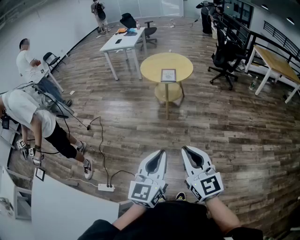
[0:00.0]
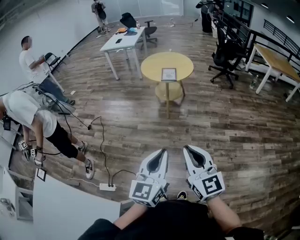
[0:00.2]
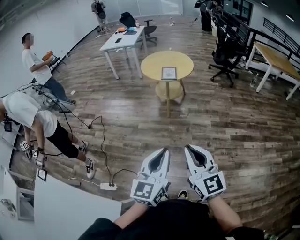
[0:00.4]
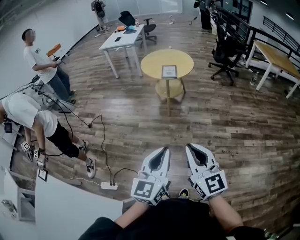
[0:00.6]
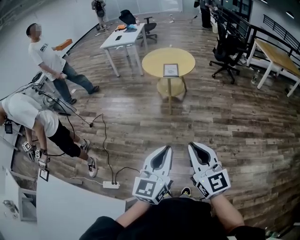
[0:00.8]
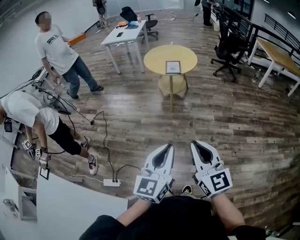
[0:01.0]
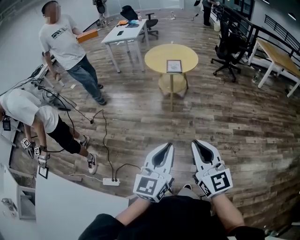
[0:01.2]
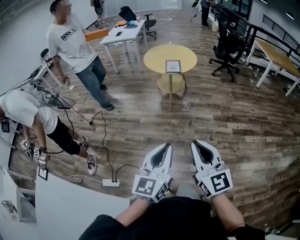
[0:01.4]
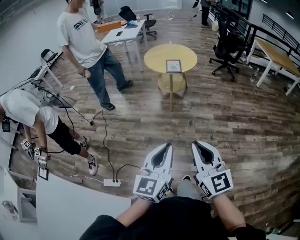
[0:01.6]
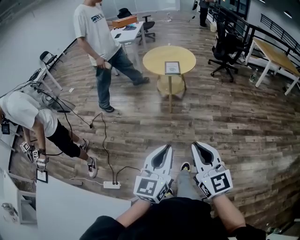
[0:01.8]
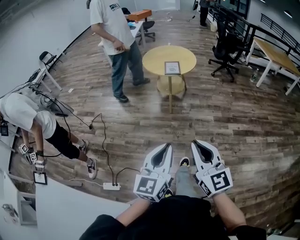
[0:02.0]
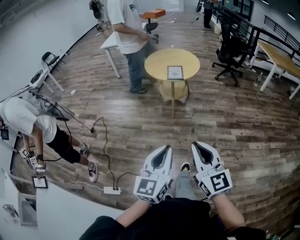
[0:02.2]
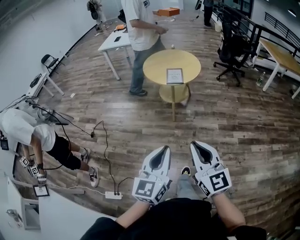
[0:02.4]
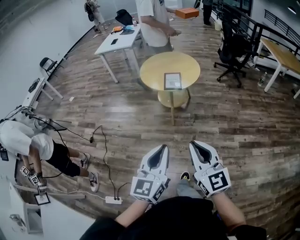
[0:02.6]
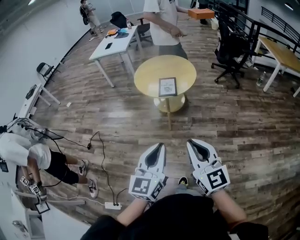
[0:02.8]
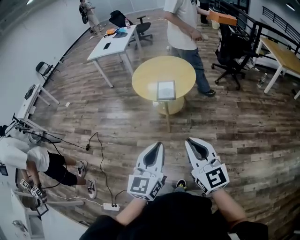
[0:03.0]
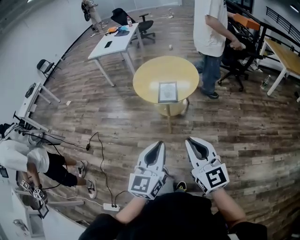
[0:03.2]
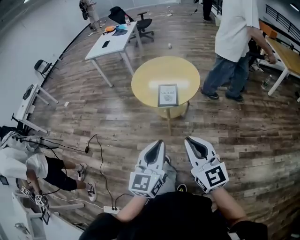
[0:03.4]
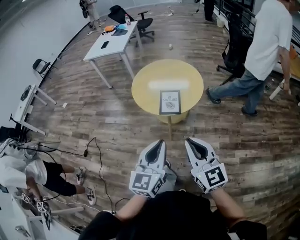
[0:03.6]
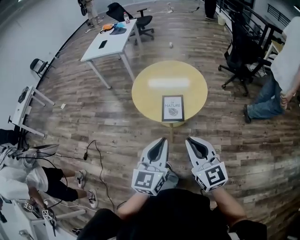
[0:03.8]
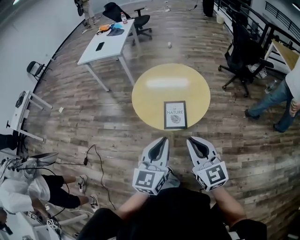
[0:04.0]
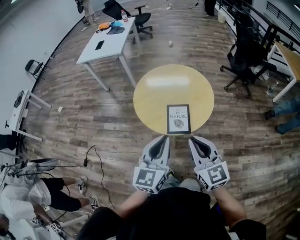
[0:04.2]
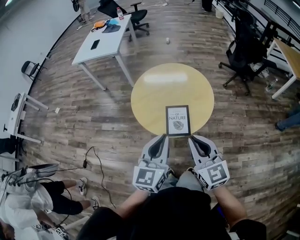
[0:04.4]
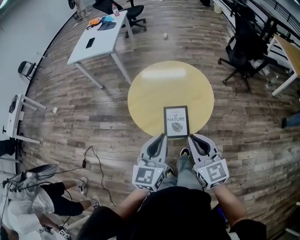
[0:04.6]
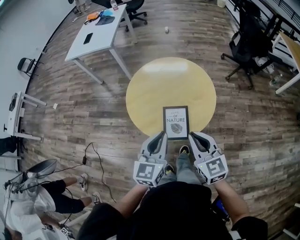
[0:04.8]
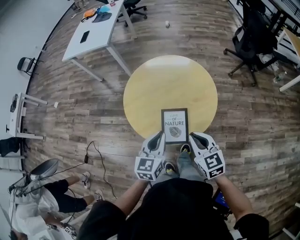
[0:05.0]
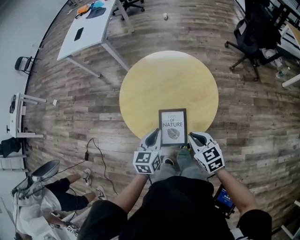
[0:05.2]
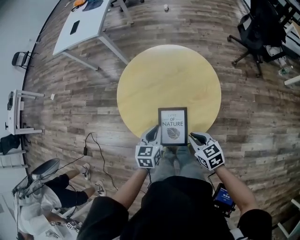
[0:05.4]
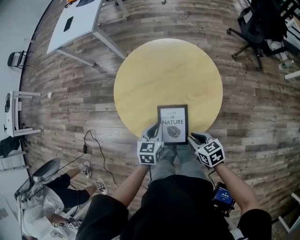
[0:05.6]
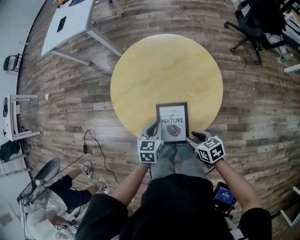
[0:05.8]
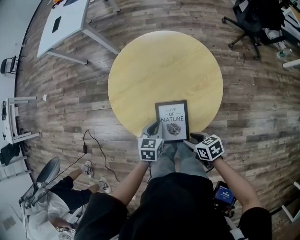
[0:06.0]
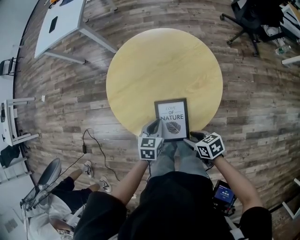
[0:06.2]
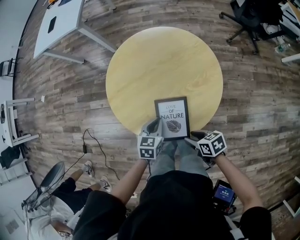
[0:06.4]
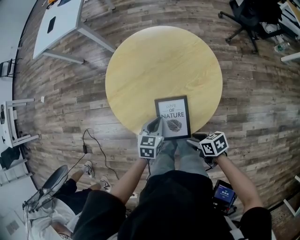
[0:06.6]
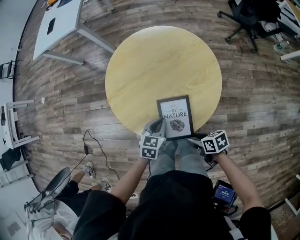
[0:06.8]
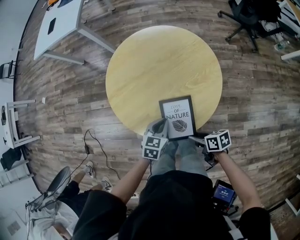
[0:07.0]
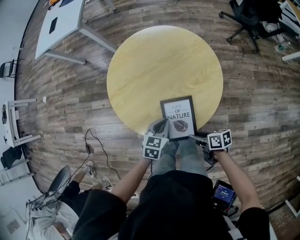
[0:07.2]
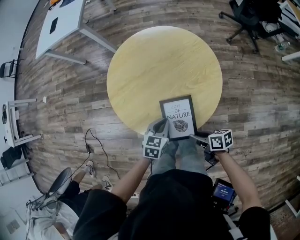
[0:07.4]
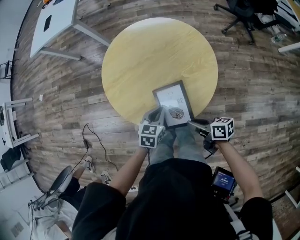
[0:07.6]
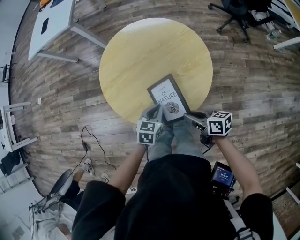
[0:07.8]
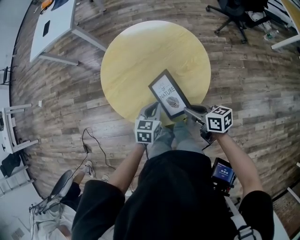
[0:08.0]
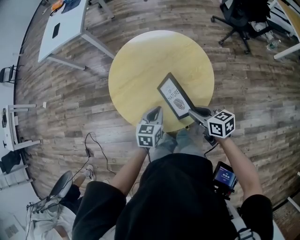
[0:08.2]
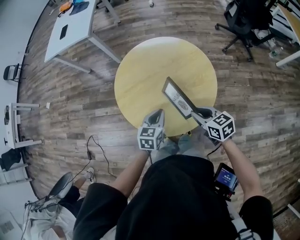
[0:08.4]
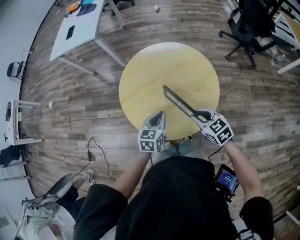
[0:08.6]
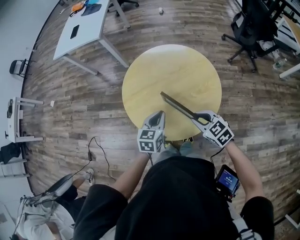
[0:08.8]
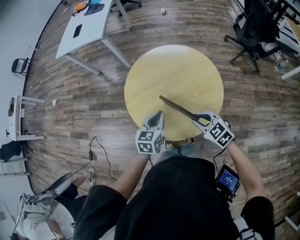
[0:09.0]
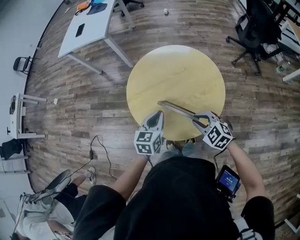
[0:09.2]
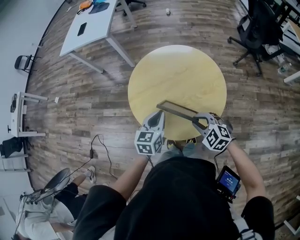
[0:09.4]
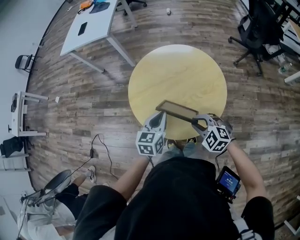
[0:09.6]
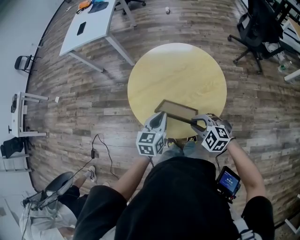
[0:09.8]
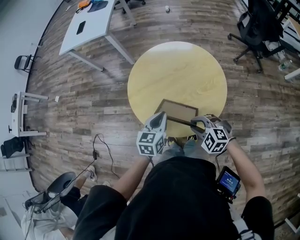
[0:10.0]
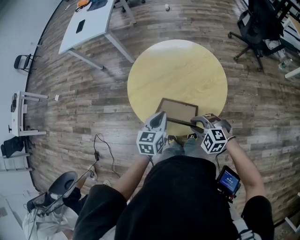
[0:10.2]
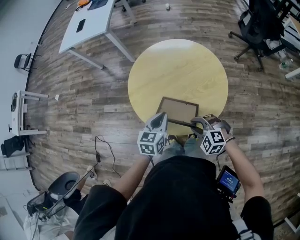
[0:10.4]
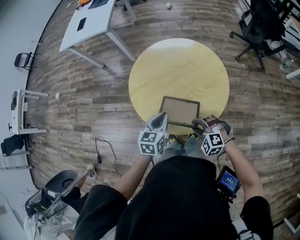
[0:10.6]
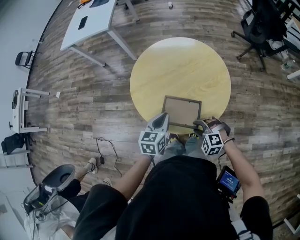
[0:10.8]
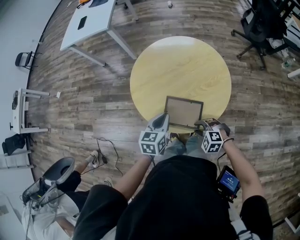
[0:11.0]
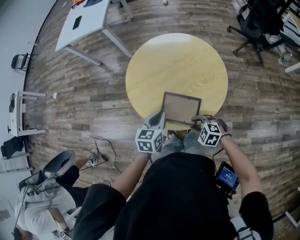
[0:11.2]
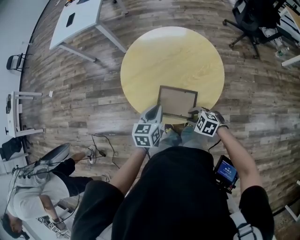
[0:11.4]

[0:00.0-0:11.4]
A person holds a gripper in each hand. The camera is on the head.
0:00.0 to 0:01.4: The grippers move only a little.
0:01.4 to 0:02.8: The two grippers go about 30 cm forward.
0:02.8 to 0:04.2: The pair of grippers is taken forward, roughly 40 cm.
0:04.2 to 0:05.6: Both grippers travel together downward and forward, about 35 cm. The right gripper tips its fingers downward by roughly 40 degrees. The left gripper points its fingers approximately 30 degrees further downward.
0:05.6 to 0:07.2: The left gripper ends up some 5 cm from where it was. Meanwhile the right gripper moves downward, about 5 cm, changes its angle by about 40 degrees, and opens up.
0:07.2 to 0:08.6: The left gripper moves upward, about 10 cm, while the right gripper is displaced upward and forward by roughly 20 cm, rotates around the line of its fingers by roughly 60 degrees, counterclockwise from behind, and closes.
0:08.6 to 0:10.0: The right gripper moves to the left, about 5 cm, and rolls counterclockwise, seen from behind, by some 40 degrees, while the left gripper shifts by some 5 cm.
0:10.0 to 0:11.4: The right gripper travels downward by some 10 cm, and rotates some 20 degrees.

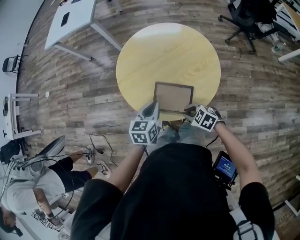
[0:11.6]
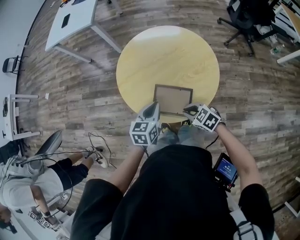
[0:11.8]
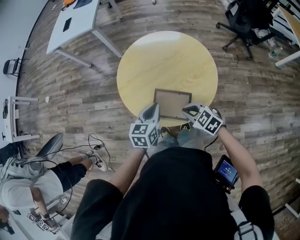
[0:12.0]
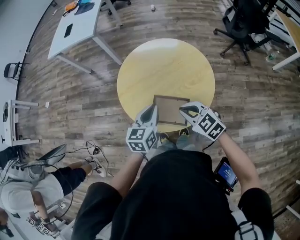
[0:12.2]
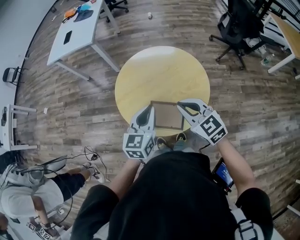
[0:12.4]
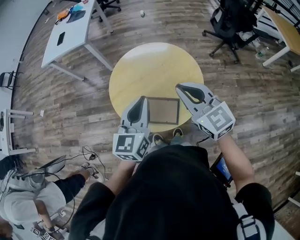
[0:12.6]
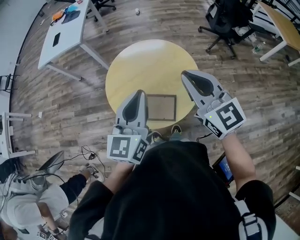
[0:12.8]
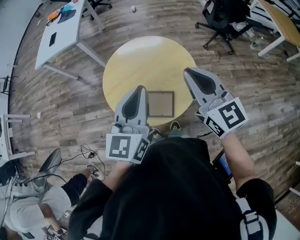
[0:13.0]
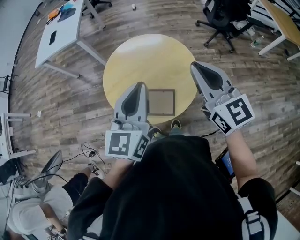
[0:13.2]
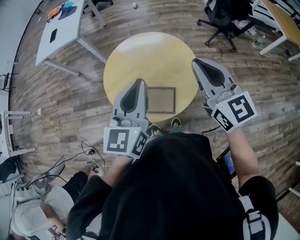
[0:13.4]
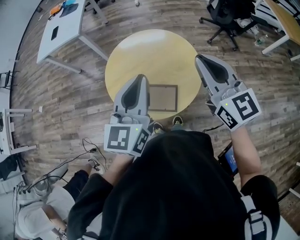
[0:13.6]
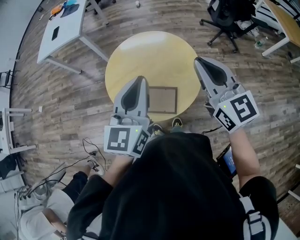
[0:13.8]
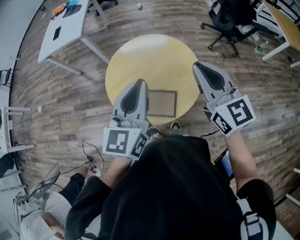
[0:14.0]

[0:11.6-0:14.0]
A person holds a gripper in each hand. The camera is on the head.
0:11.6 to 0:12.8: Both grippers travel together upward, some 35 cm. The right gripper points its fingers about 50 degrees further upward. Meanwhile the left gripper tips its fingers upward by roughly 30 degrees.
0:12.8 to 0:14.0: The grippers stay close to where they were, moving slightly.

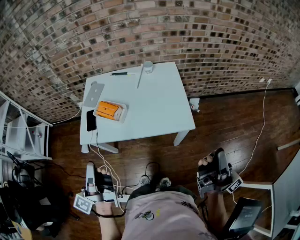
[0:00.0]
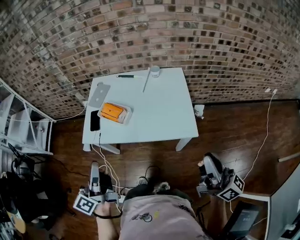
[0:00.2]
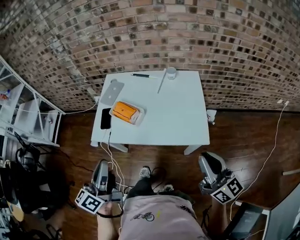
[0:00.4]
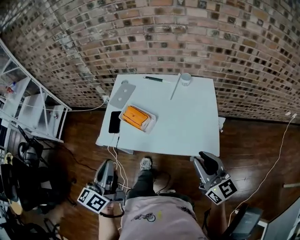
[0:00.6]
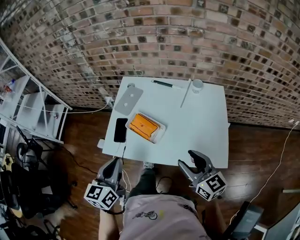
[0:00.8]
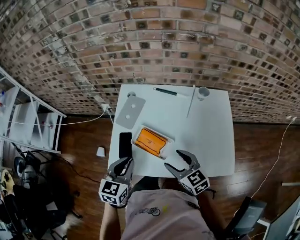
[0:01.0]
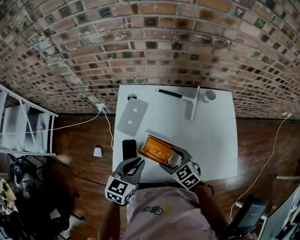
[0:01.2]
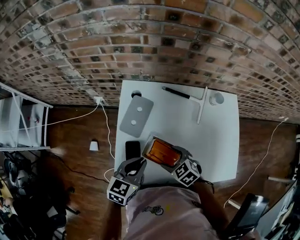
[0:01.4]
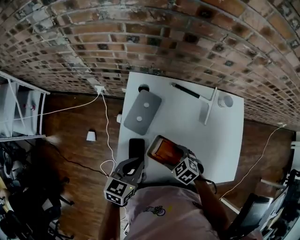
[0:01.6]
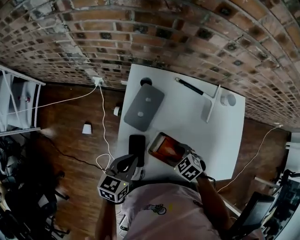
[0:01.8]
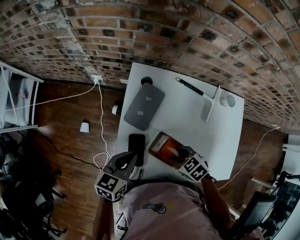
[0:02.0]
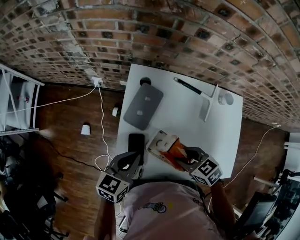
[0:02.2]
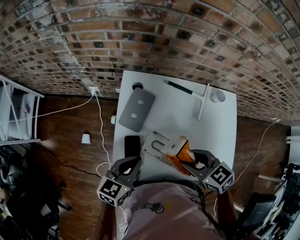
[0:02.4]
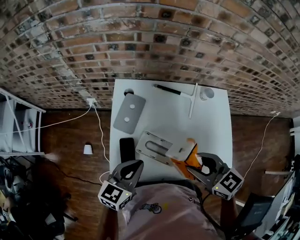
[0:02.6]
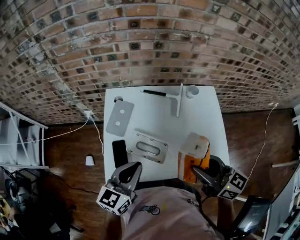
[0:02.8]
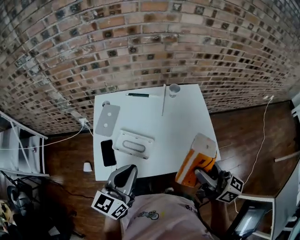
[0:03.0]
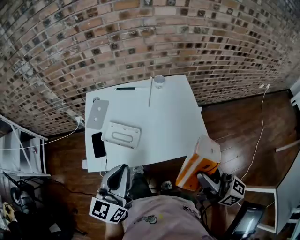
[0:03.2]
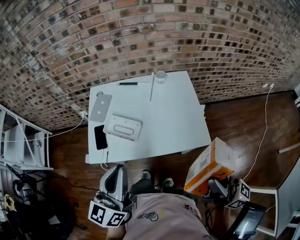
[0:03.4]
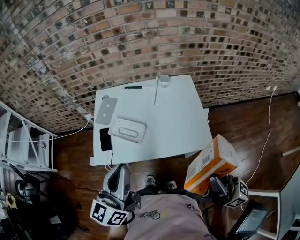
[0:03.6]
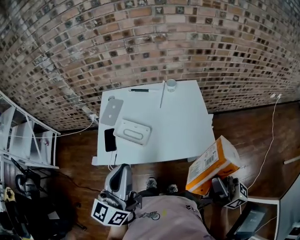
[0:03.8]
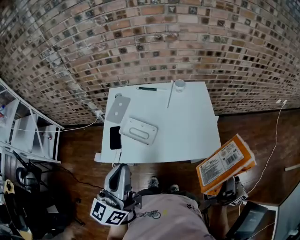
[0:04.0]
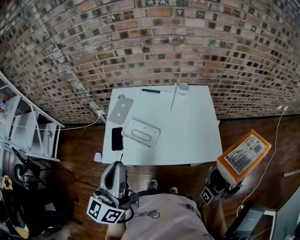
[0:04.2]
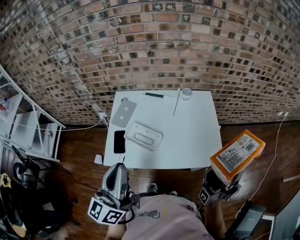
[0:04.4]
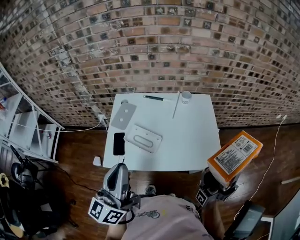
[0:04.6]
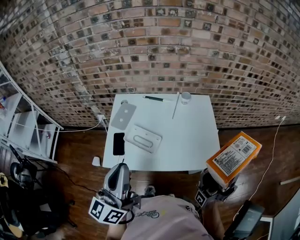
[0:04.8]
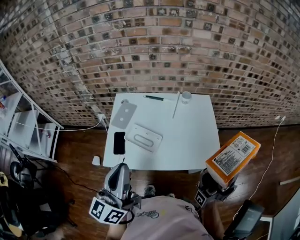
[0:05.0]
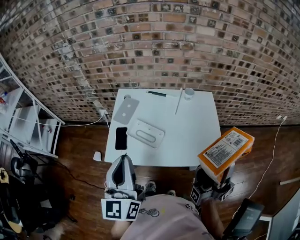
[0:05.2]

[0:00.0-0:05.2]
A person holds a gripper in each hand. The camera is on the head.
0:00.0 to 0:01.8: The right gripper travels forward, to the left and downward by some 70 cm, tilts its fingers roughly 110 degrees downward, and opens. The left gripper heads forward and downward, covering about 40 cm, and points its fingers some 50 degrees further downward.
0:01.8 to 0:03.4: Both grippers travel together upward, backward and to the right, some 50 cm. The right gripper tips its fingers upward by about 90 degrees. The left gripper tips its fingers upward by some 40 degrees.
0:03.4 to 0:05.2: The left gripper changes place by approximately 10 cm, and changes its angle by approximately 20 degrees. The right gripper shifts by roughly 10 cm, and swivels roughly 60 degrees.

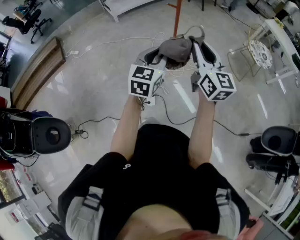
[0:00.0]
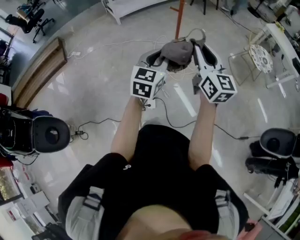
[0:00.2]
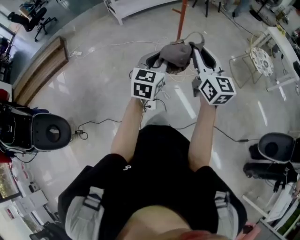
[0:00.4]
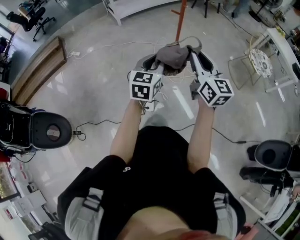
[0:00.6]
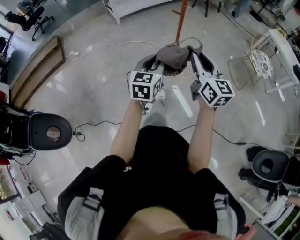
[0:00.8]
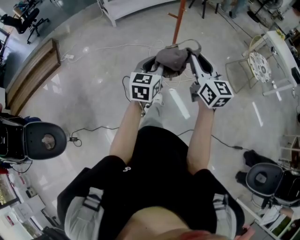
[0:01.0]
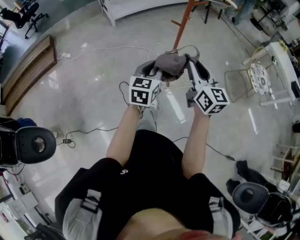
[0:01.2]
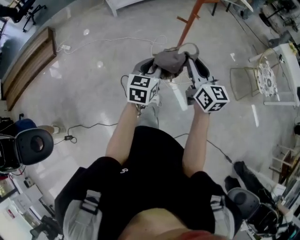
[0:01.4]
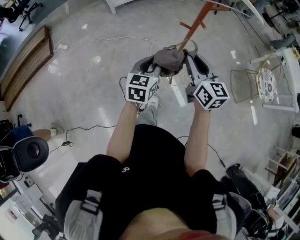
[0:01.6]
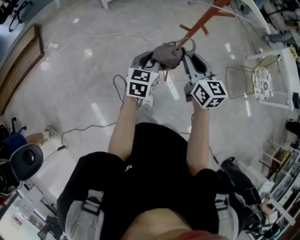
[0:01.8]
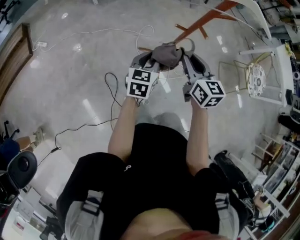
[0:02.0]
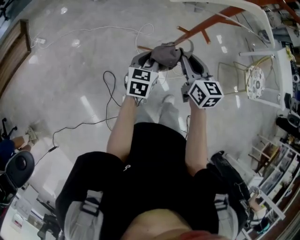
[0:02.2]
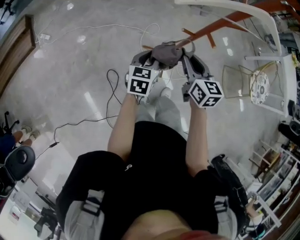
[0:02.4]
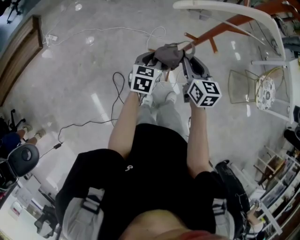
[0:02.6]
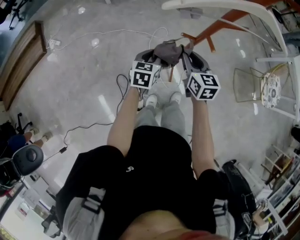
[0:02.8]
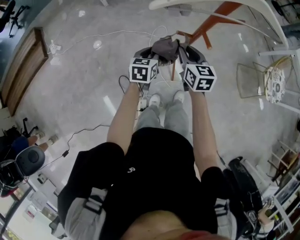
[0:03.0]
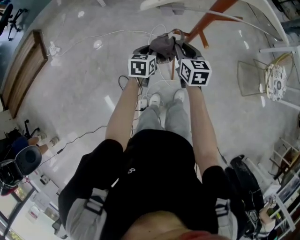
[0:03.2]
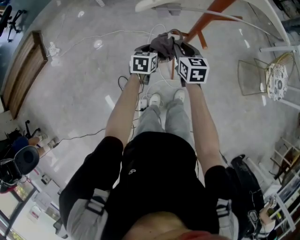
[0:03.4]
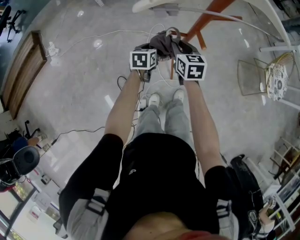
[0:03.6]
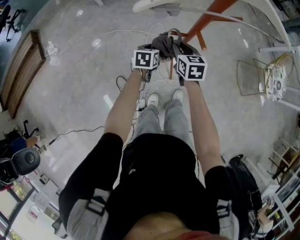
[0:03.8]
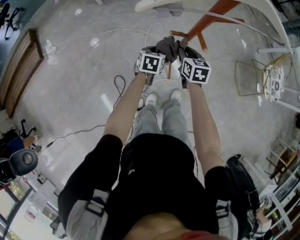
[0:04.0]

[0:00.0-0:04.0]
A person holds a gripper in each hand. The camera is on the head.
0:00.0 to 0:01.4: The two grippers go about 25 cm forward and downward.
0:01.4 to 0:02.6: The two grippers go roughly 25 cm forward and downward.
0:02.6 to 0:04.0: Both grippers travel together downward, forward and to the right, about 15 cm.
